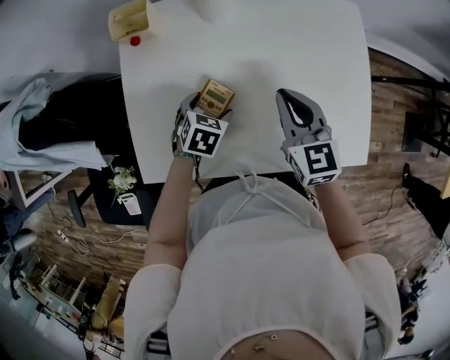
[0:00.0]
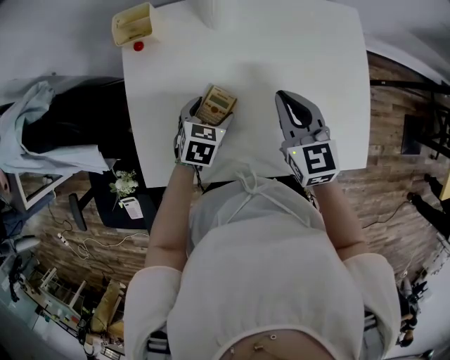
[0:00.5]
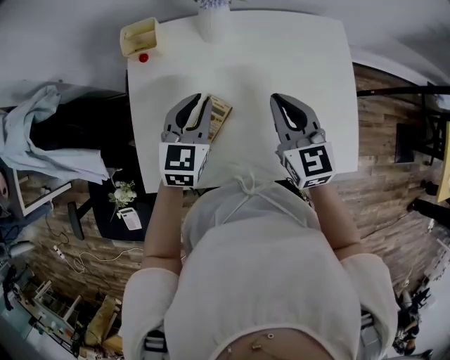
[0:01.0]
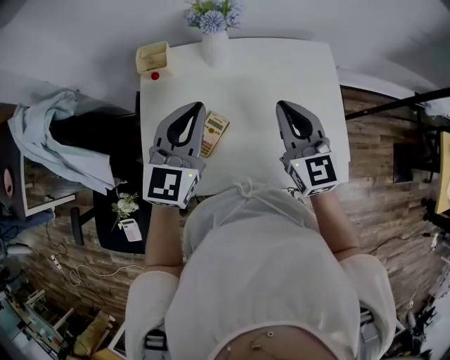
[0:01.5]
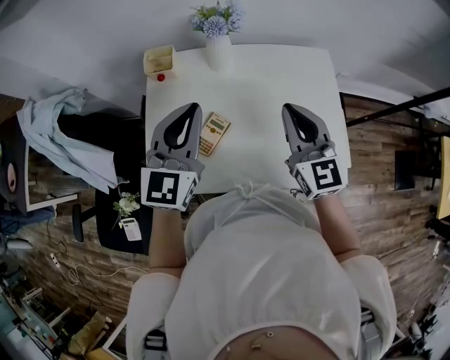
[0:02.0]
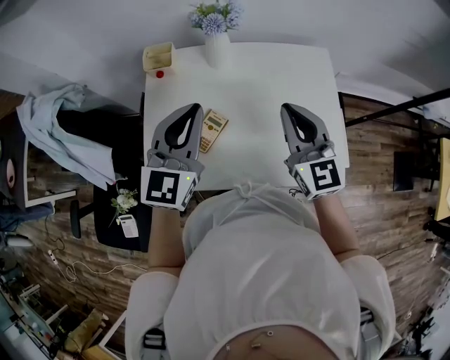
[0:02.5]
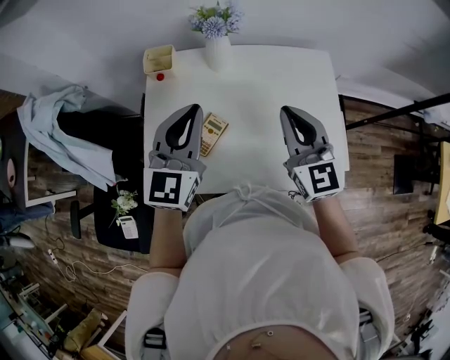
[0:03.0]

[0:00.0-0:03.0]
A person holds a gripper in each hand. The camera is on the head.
0:00.0 to 0:01.5: The right gripper goes roughly 15 cm upward. The left gripper is displaced upward by about 35 cm, angles its fingers upward, by approximately 60 degrees, and closes up.
0:01.5 to 0:03.0: There are only small adjustments of the grippers.

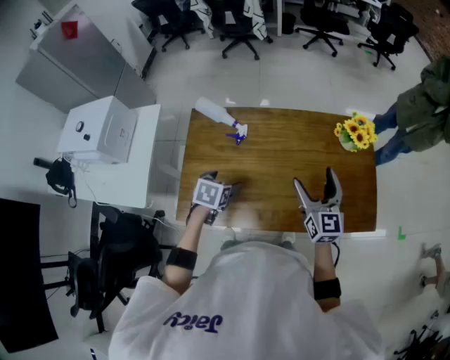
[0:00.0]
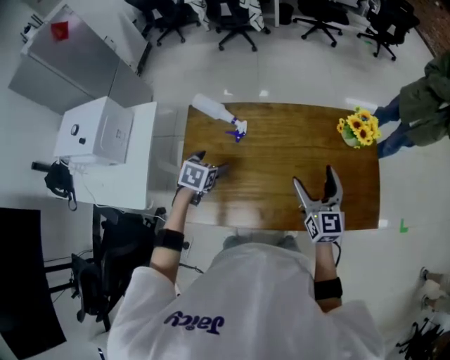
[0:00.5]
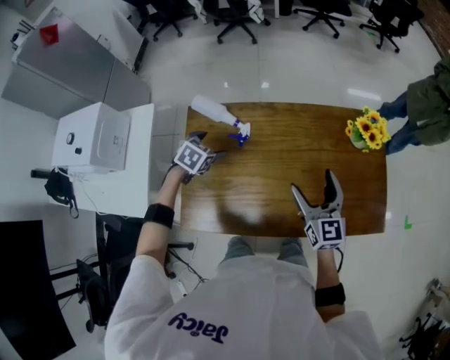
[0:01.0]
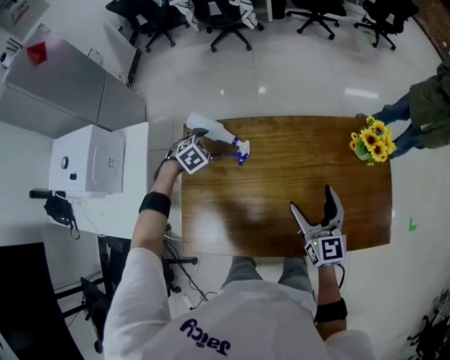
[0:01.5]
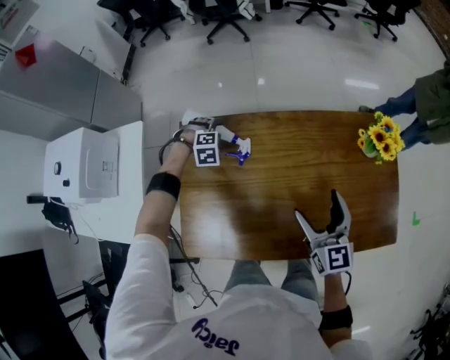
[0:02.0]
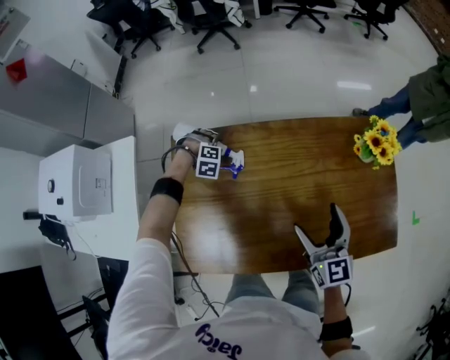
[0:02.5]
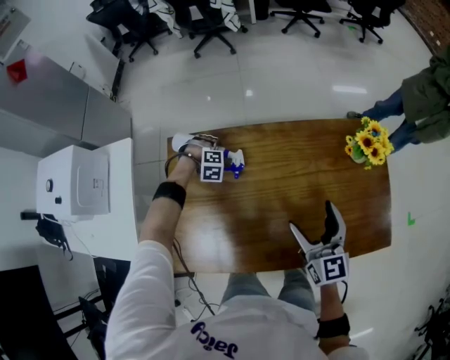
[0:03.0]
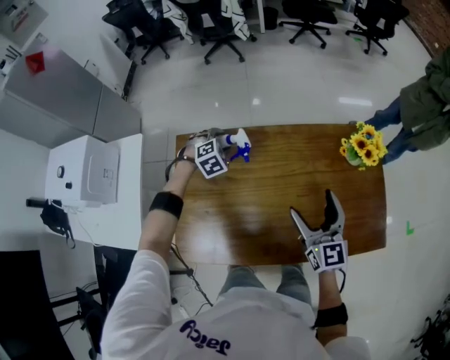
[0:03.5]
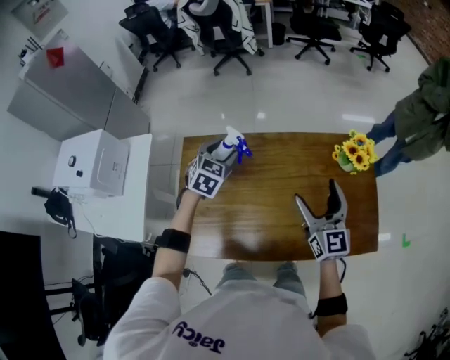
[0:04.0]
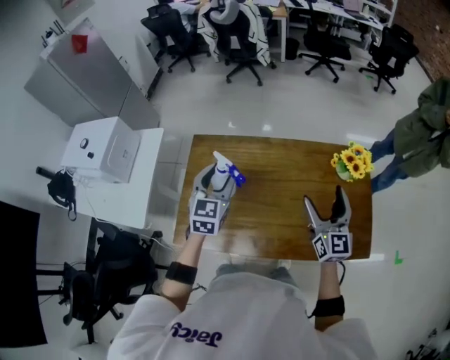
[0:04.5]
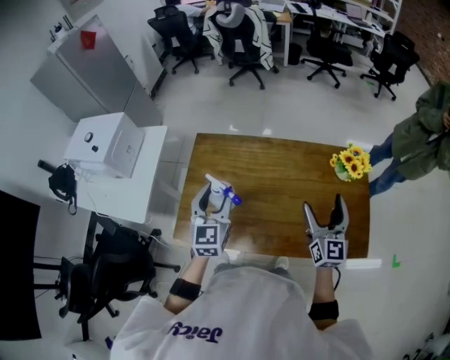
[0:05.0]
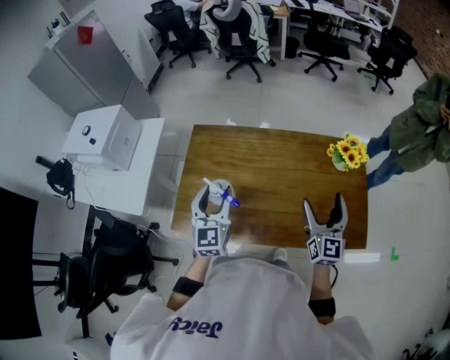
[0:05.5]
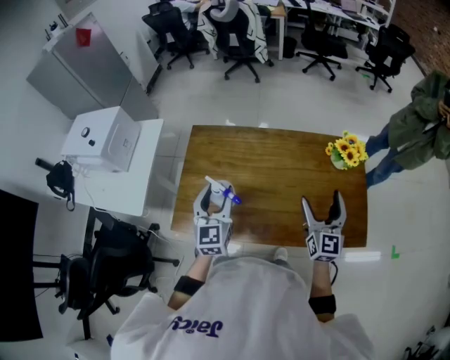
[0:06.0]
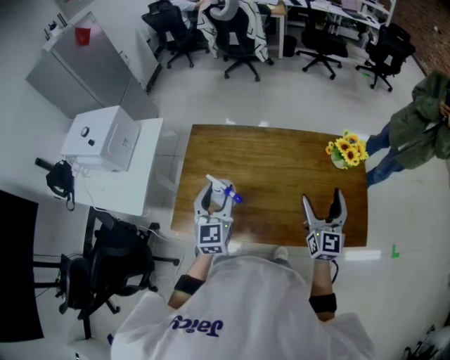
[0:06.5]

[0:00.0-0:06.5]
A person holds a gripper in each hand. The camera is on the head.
0:00.0 to 0:02.0: The right gripper goes about 10 cm forward, downward and to the left. The left gripper shifts some 30 cm forward, and rolls clockwise, seen from behind, by approximately 80 degrees.
0:02.0 to 0:04.5: The right gripper moves upward, some 10 cm; the left gripper shifts some 30 cm upward, points its fingers roughly 50 degrees further upward, and closes its fingers.
0:04.5 to 0:06.5: The left gripper travels backward by about 10 cm. Meanwhile the right gripper shifts some 5 cm backward.

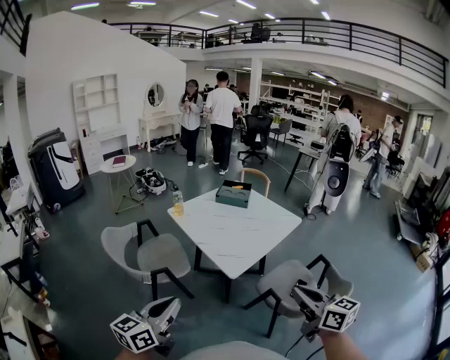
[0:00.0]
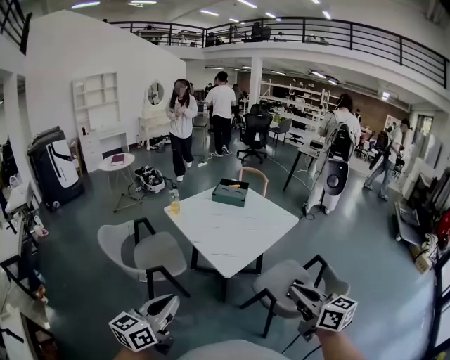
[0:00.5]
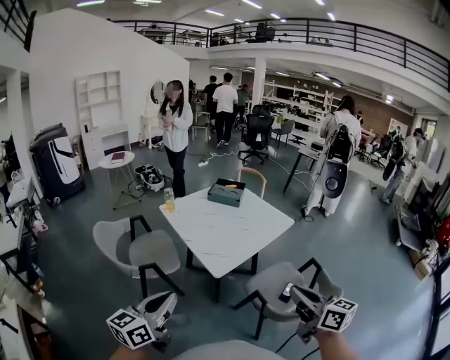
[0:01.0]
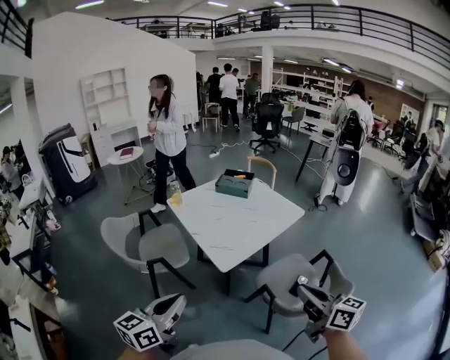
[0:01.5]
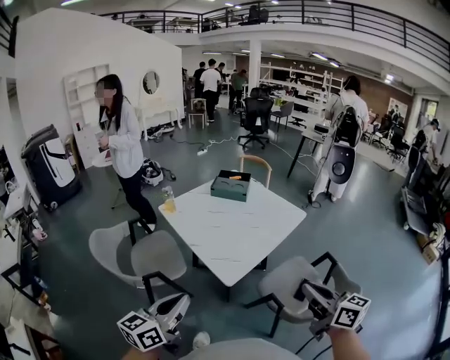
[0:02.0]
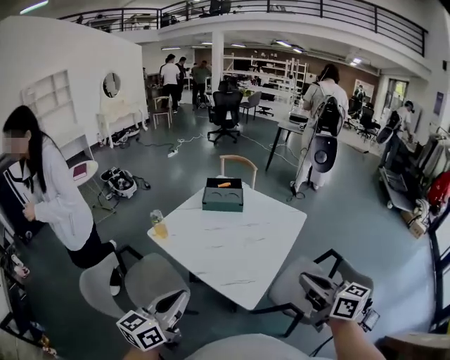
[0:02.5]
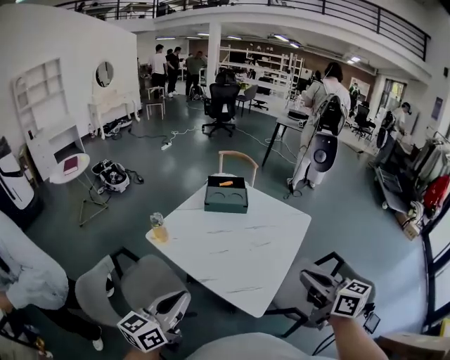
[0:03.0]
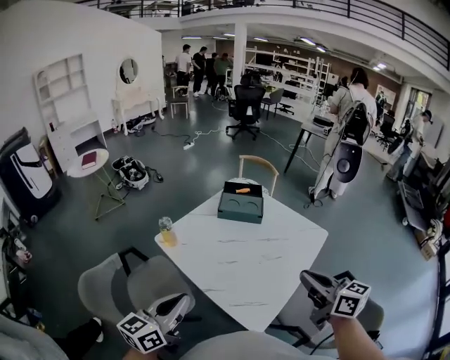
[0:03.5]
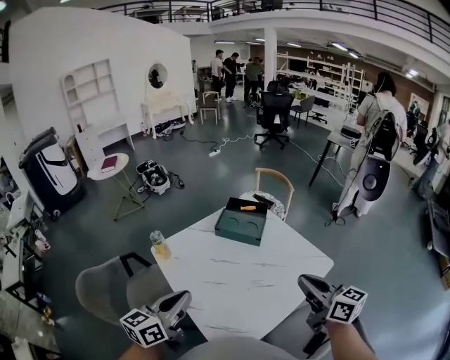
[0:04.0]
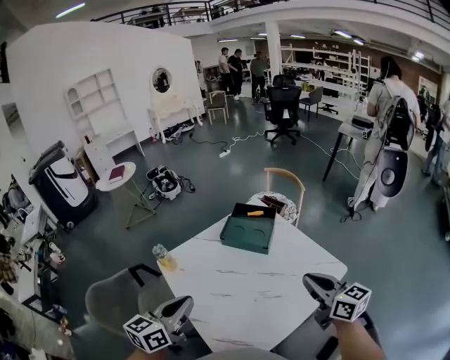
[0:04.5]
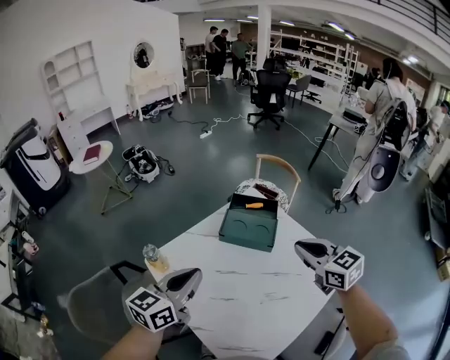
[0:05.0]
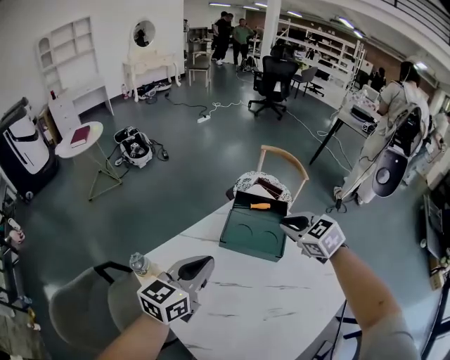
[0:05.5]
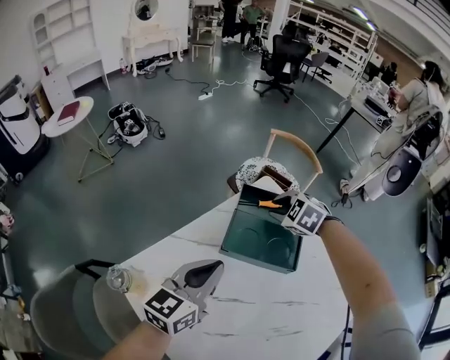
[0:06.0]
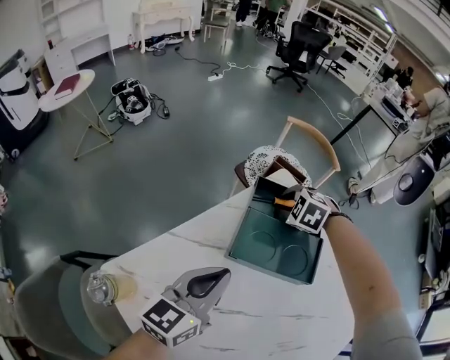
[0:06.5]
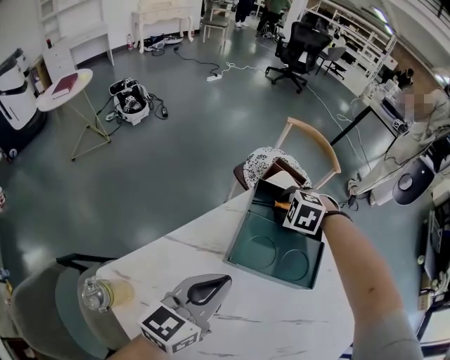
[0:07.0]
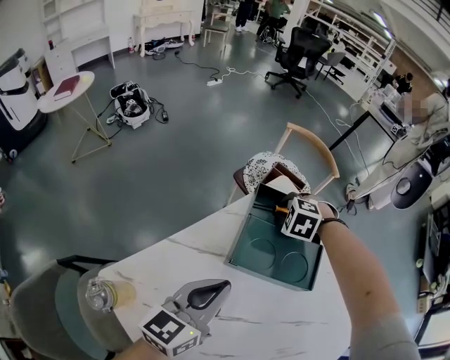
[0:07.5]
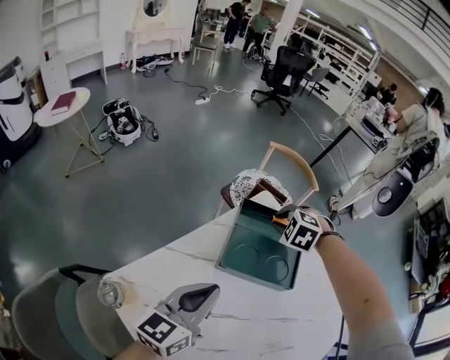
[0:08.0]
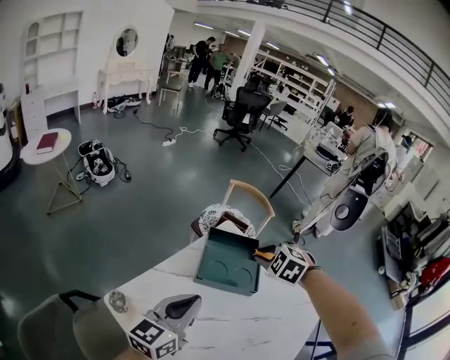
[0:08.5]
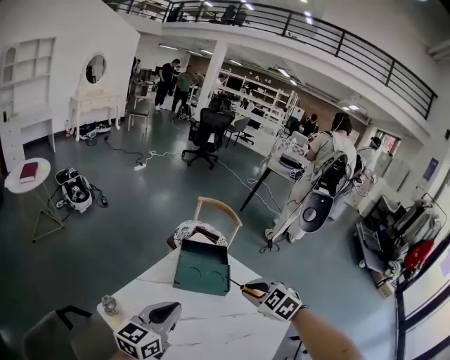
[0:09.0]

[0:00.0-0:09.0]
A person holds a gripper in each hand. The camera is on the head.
0:00.0 to 0:02.0: Both grippers travel together forward and to the right, roughly 10 cm.
0:02.0 to 0:04.5: Both grippers travel together forward, approximately 40 cm.
0:04.5 to 0:07.0: The right gripper is displaced forward and downward by about 50 cm, and points its fingers some 60 degrees further downward; the left gripper moves forward and downward, some 35 cm.
0:07.0 to 0:09.0: The left gripper is displaced upward and backward by approximately 20 cm. The right gripper travels backward and upward by some 40 cm, and changes its angle by some 40 degrees.

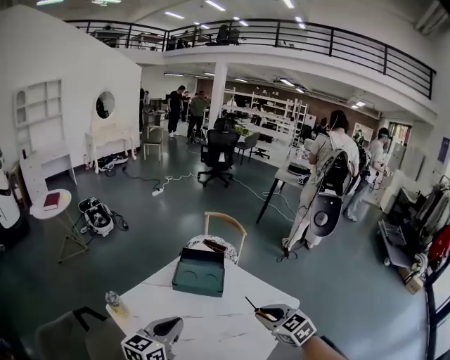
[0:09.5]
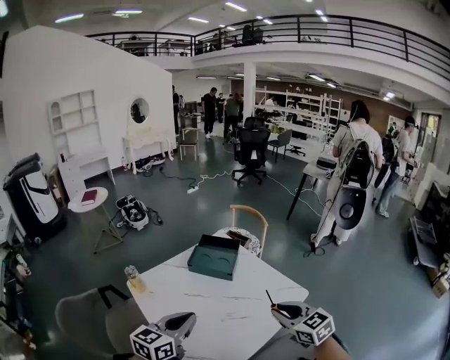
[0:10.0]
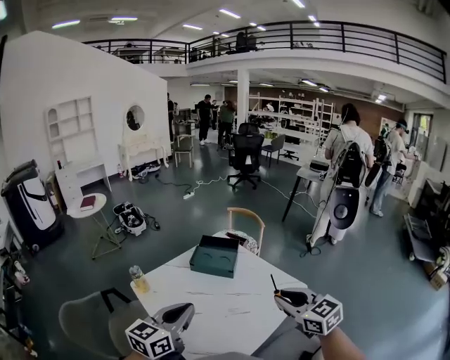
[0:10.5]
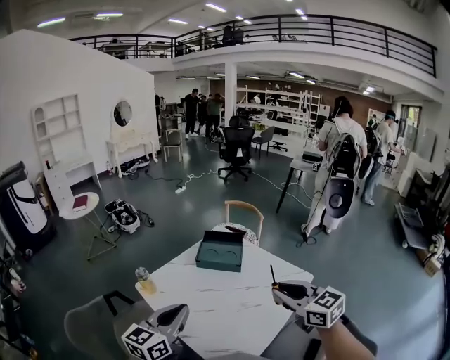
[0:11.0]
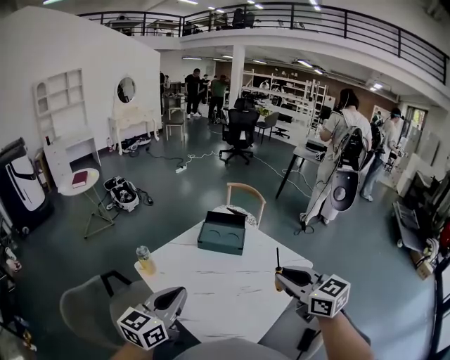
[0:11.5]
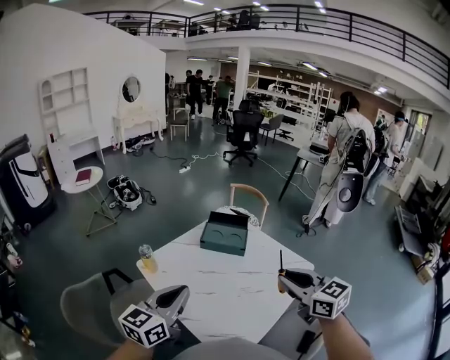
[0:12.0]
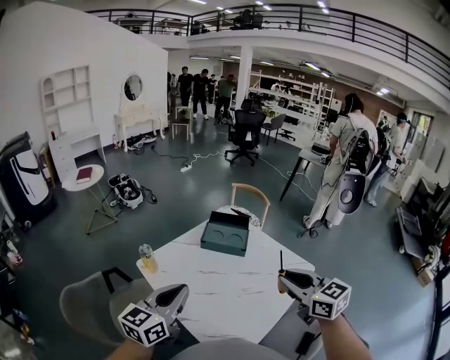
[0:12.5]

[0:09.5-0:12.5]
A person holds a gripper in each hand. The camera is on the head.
0:09.5 to 0:11.0: The left gripper moves backward and upward, roughly 15 cm, while the right gripper heads upward and backward, covering roughly 15 cm, and turns by some 20 degrees.
0:11.0 to 0:12.5: The grippers stay close to where they were, moving slightly.

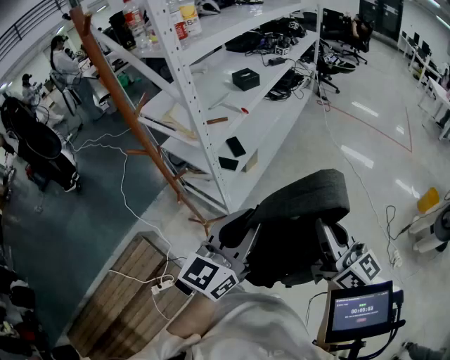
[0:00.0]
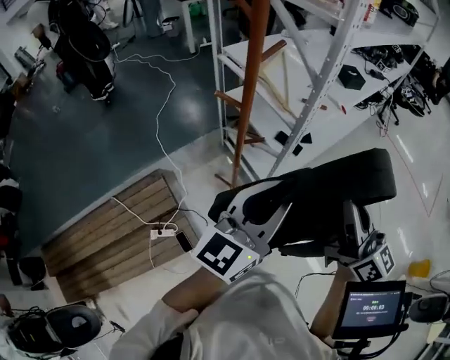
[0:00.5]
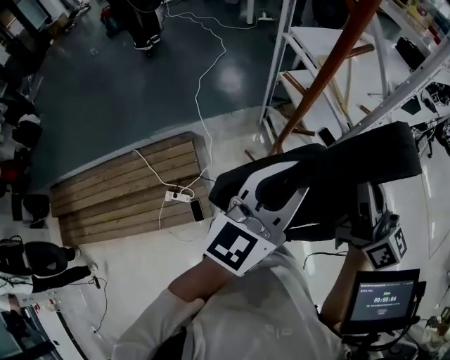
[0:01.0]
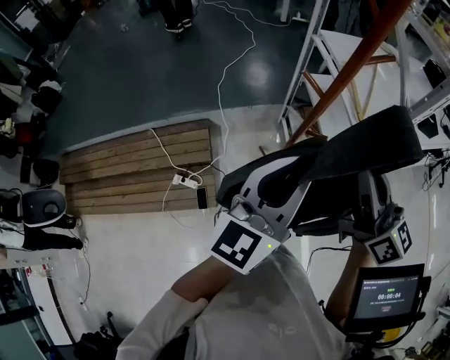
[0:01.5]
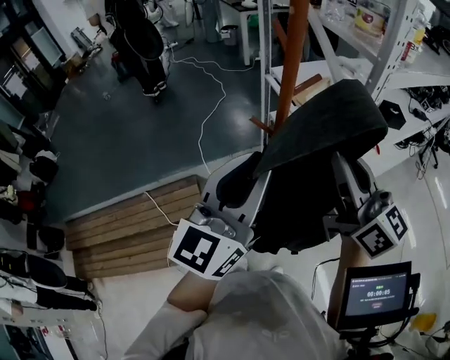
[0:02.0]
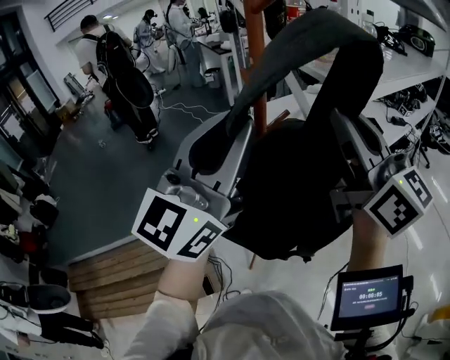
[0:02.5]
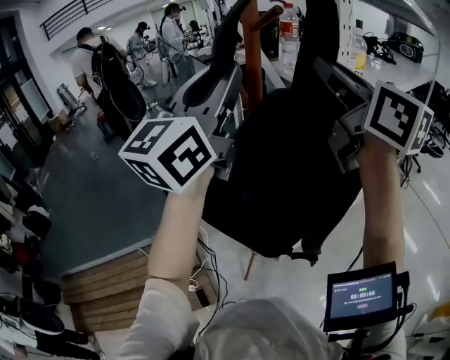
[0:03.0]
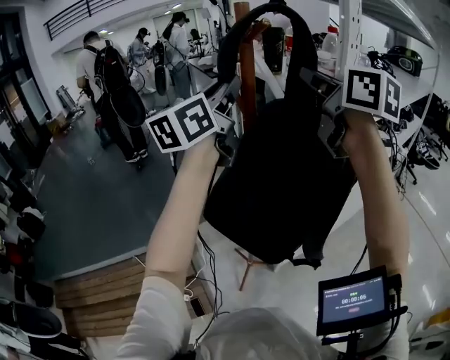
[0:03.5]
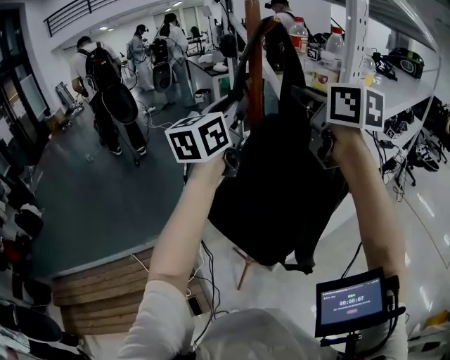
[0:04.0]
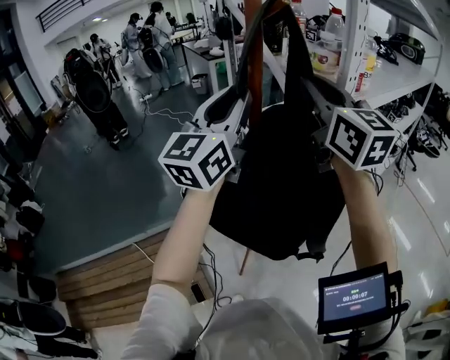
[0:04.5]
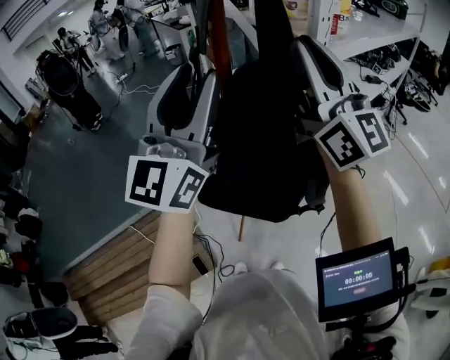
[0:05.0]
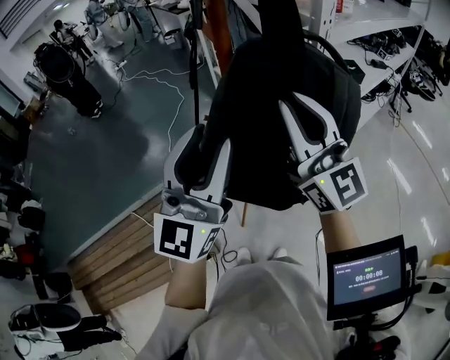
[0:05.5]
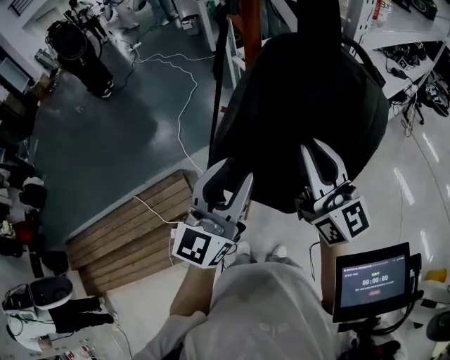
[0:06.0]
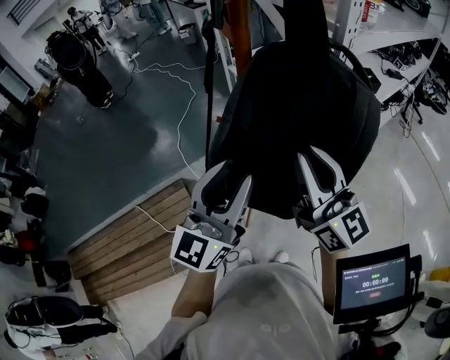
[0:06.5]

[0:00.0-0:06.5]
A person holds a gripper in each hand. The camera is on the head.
0:00.0 to 0:02.0: The left gripper moves roughly 35 cm, and turns by roughly 40 degrees. Meanwhile the right gripper ends up about 40 cm from where it was, and rotates roughly 30 degrees.
0:02.0 to 0:04.5: The right gripper goes about 20 cm upward and forward, and changes its angle by some 20 degrees. The left gripper moves forward and upward, approximately 20 cm.
0:04.5 to 0:06.5: The two grippers go some 25 cm downward and backward.
